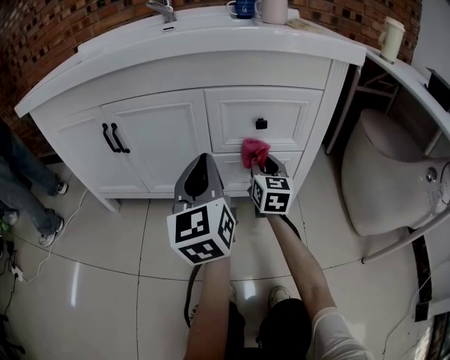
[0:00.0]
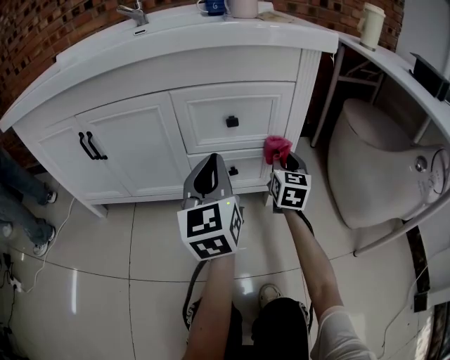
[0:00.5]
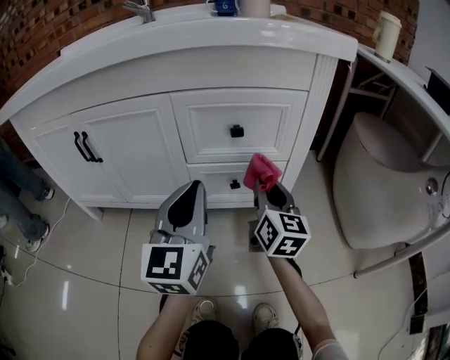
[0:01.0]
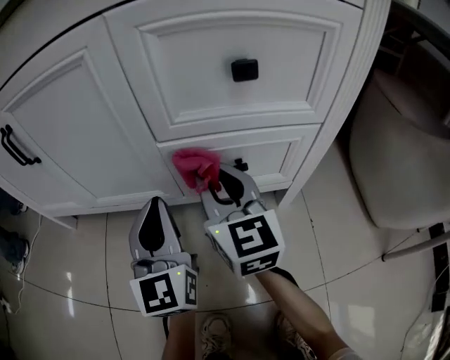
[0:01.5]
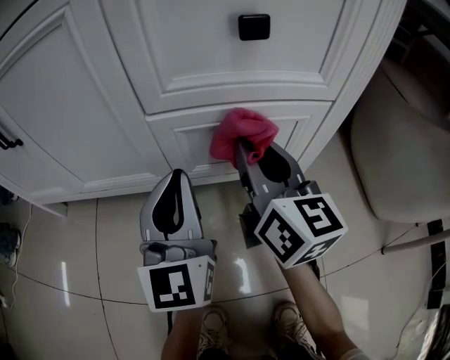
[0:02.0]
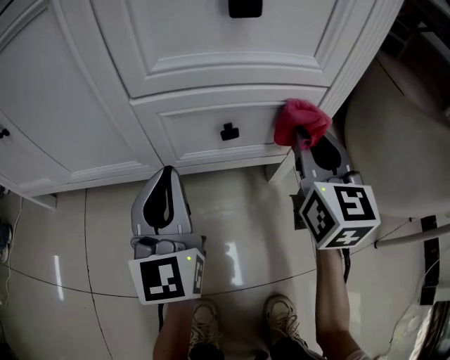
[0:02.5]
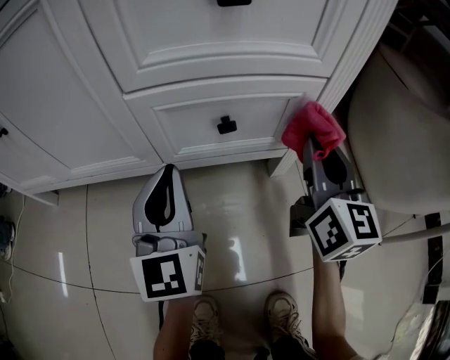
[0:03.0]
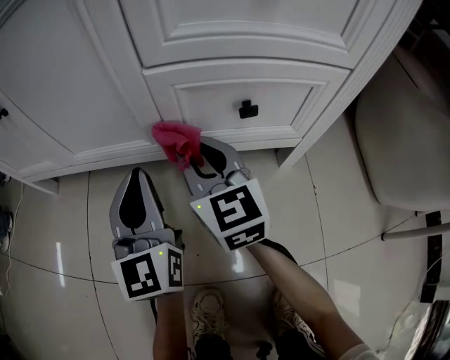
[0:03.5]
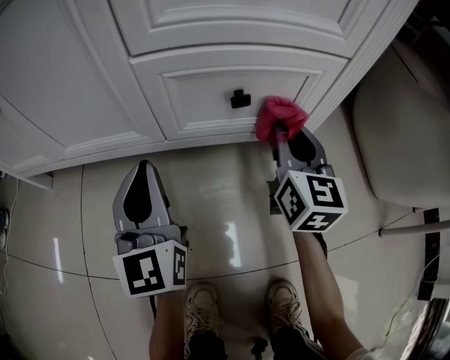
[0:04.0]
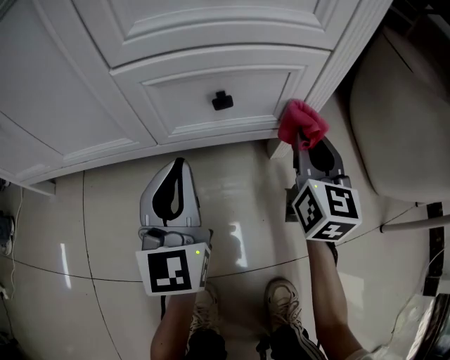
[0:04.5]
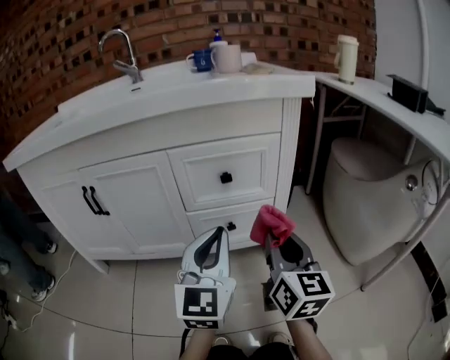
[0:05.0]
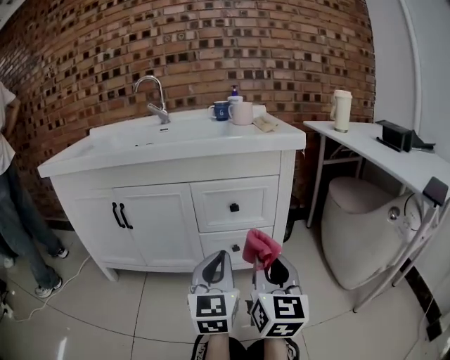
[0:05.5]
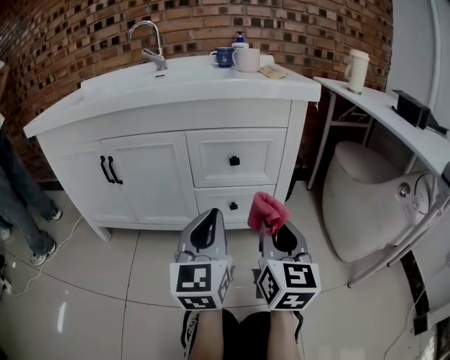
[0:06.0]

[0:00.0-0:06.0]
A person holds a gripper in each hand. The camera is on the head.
0:00.0 to 0:02.0: The right gripper moves left and right over some 20 cm, changing direction 2 times; the left gripper moves downward, some 20 cm.
0:02.0 to 0:04.0: The left gripper moves downward and to the left, some 10 cm; the right gripper swings left and right, about 25 cm each way, with 2 reversals, and changes its angle by approximately 20 degrees.
0:04.0 to 0:06.0: The right gripper is displaced upward and backward by roughly 35 cm, while the left gripper goes some 35 cm upward, backward and to the right.

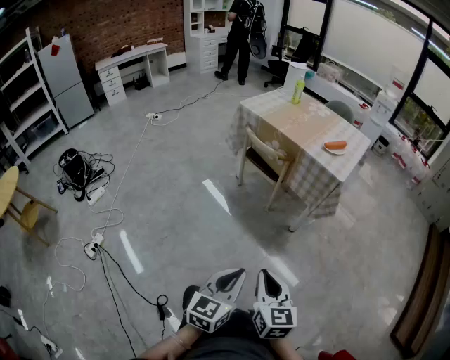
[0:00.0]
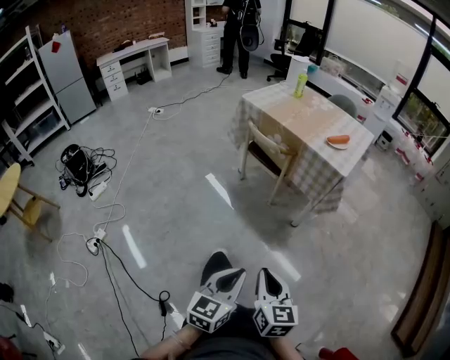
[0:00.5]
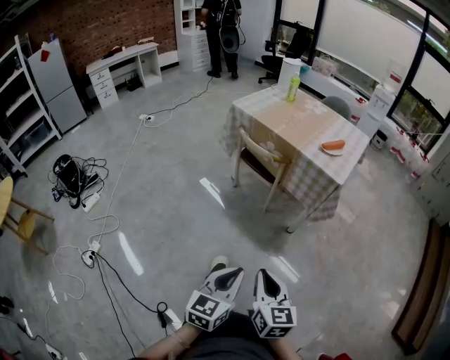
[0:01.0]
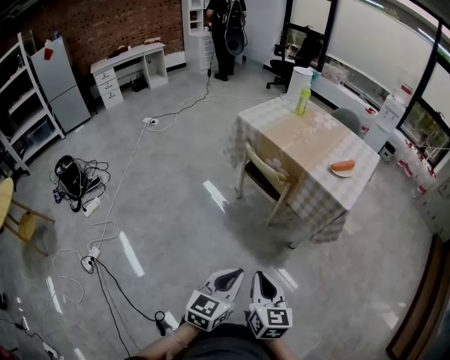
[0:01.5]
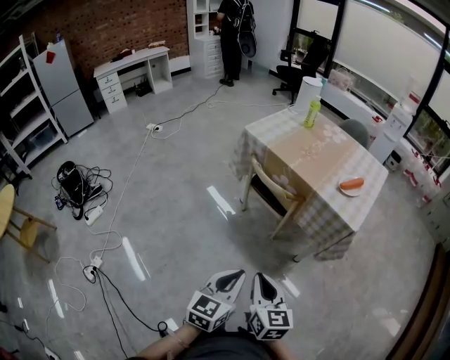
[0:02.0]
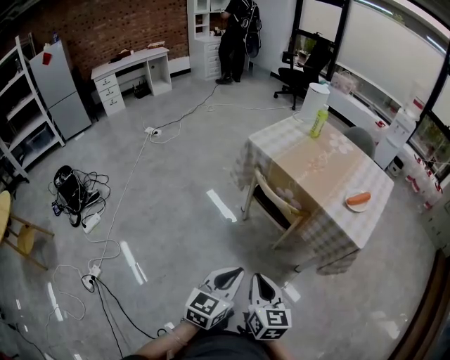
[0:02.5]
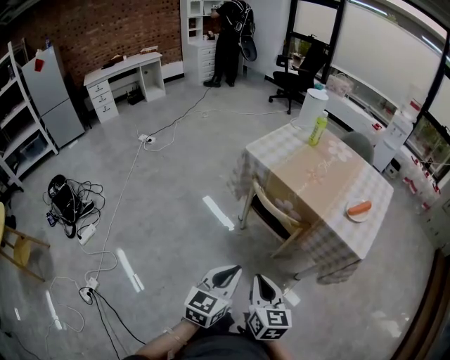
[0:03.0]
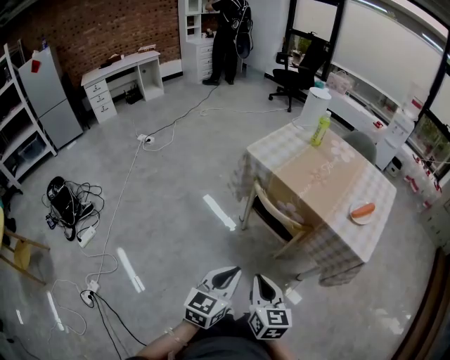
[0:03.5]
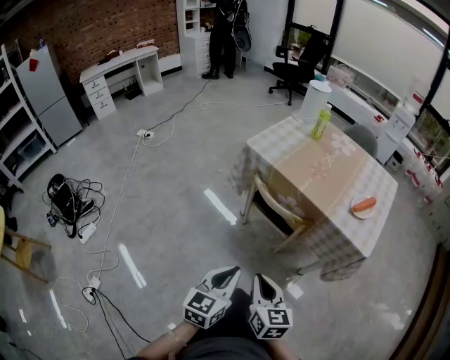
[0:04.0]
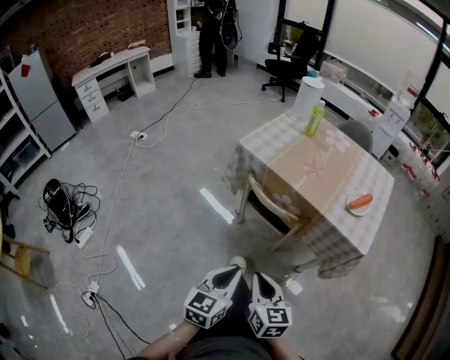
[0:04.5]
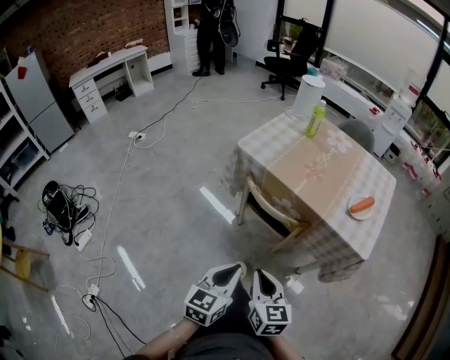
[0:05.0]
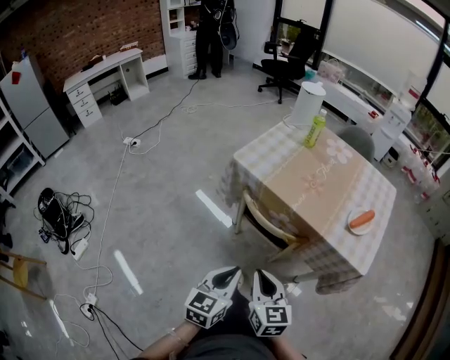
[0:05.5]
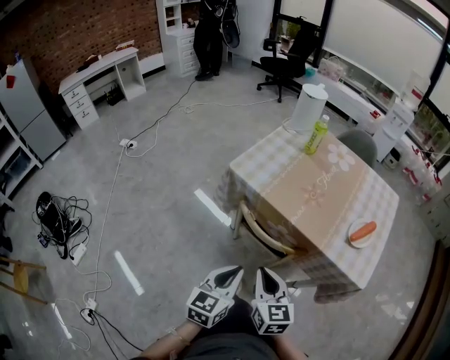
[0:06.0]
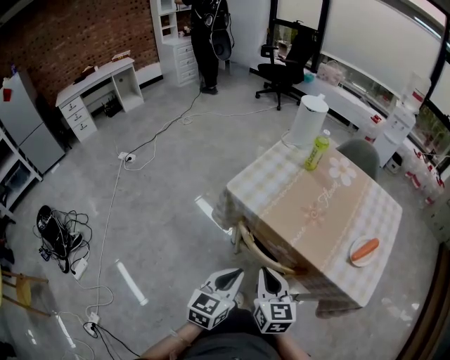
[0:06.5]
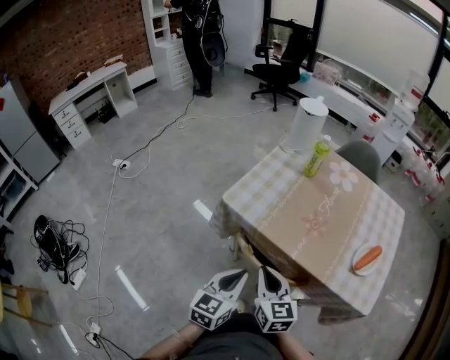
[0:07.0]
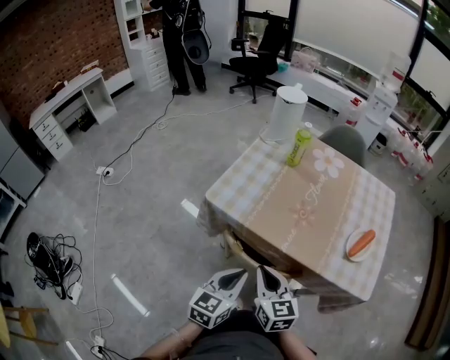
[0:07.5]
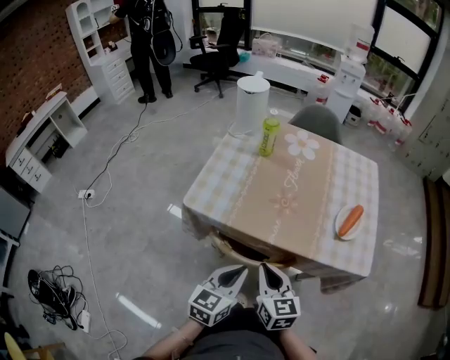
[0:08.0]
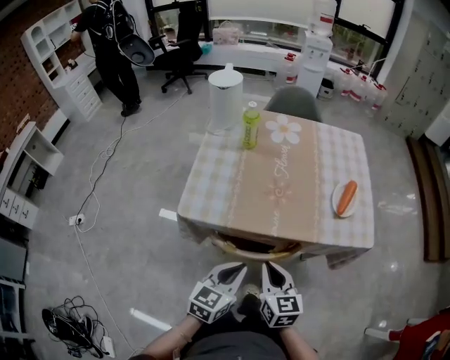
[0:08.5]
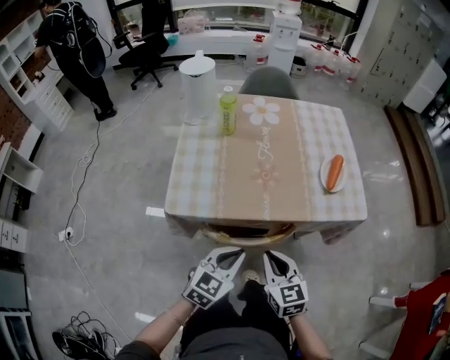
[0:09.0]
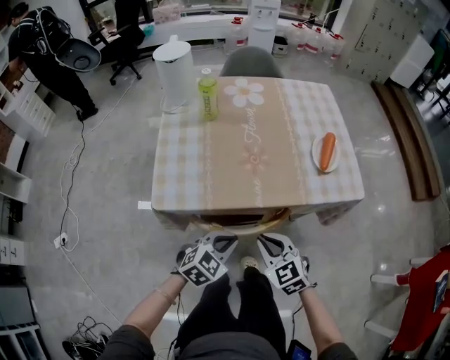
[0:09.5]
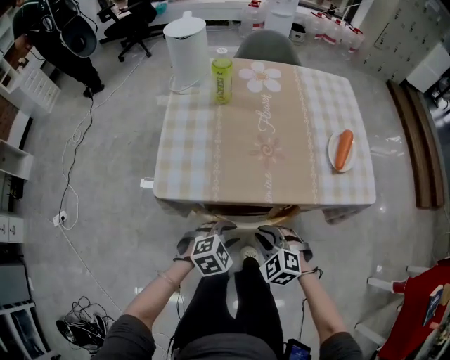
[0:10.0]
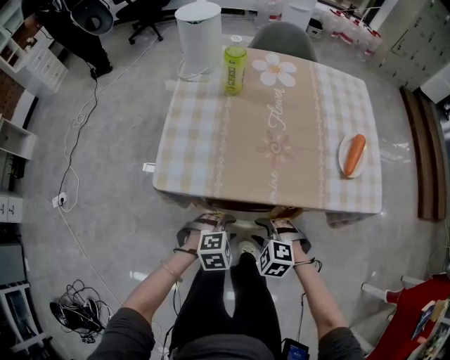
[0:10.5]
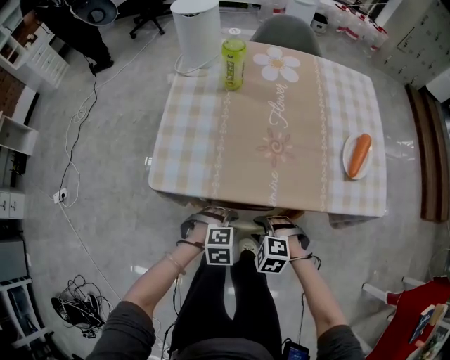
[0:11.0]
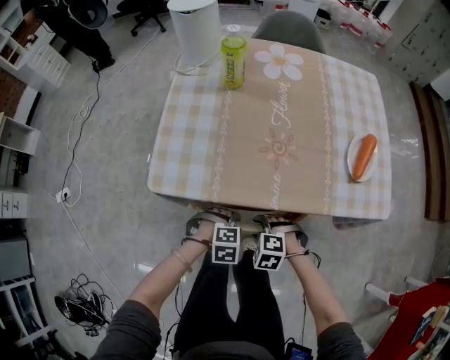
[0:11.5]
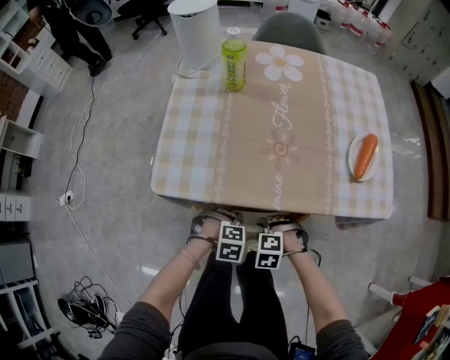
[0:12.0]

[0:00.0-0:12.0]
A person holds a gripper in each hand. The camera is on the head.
0:00.0 to 0:02.0: Both grippers move forward, some 25 cm.
0:02.0 to 0:04.0: Both grippers travel together forward and to the left, roughly 15 cm.
0:04.0 to 0:06.0: The two grippers go some 20 cm forward.
0:06.0 to 0:08.0: The two grippers go roughly 15 cm forward. The left gripper swivels some 20 degrees.
0:08.0 to 0:10.0: The grippers both shift downward by approximately 15 cm. The left gripper tilts its fingers approximately 40 degrees downward, and opens up. The right gripper tips its fingers downward by roughly 30 degrees.
0:10.0 to 0:12.0: Both grippers travel together downward, some 10 cm. The left gripper turns by approximately 30 degrees. Meanwhile the right gripper swivels approximately 40 degrees, and opens its fingers.

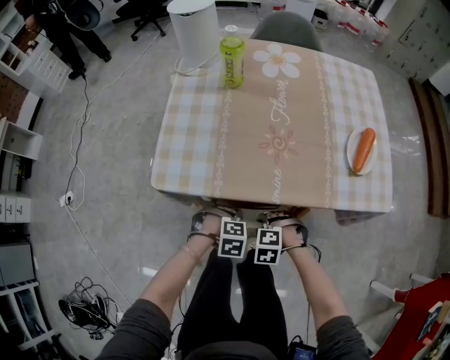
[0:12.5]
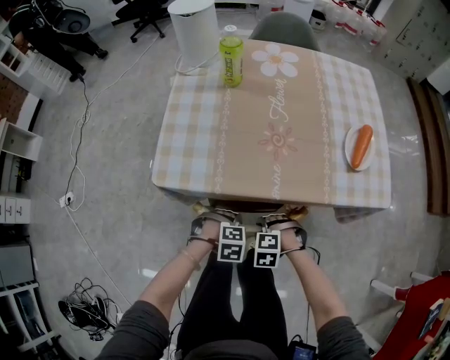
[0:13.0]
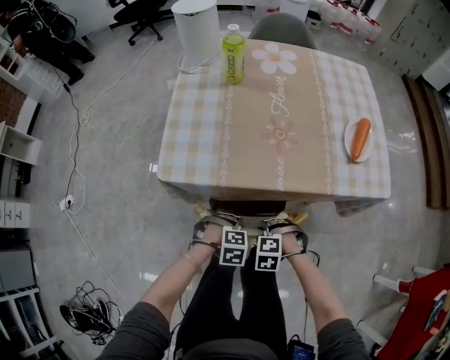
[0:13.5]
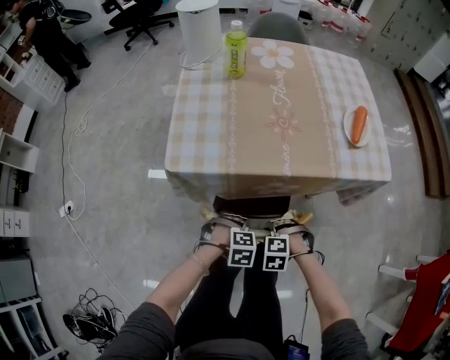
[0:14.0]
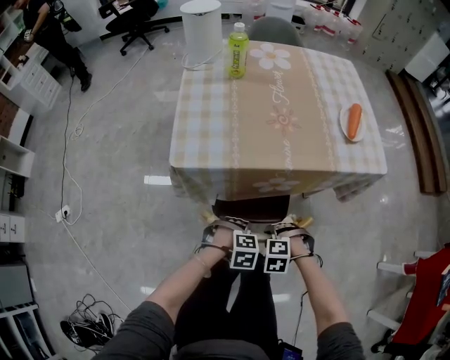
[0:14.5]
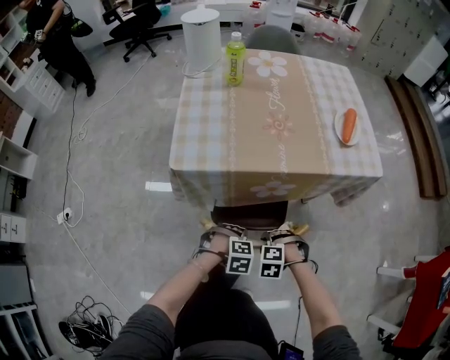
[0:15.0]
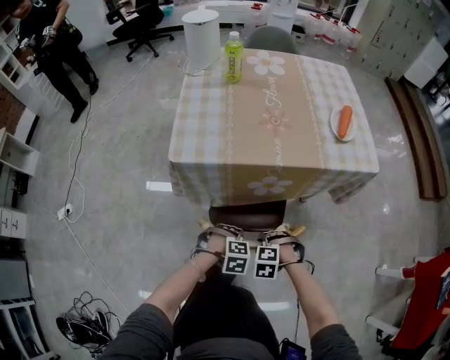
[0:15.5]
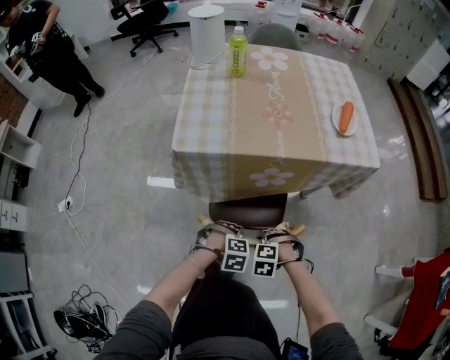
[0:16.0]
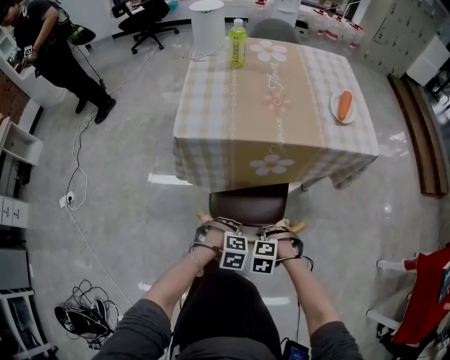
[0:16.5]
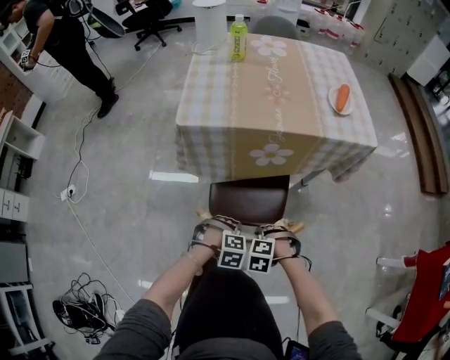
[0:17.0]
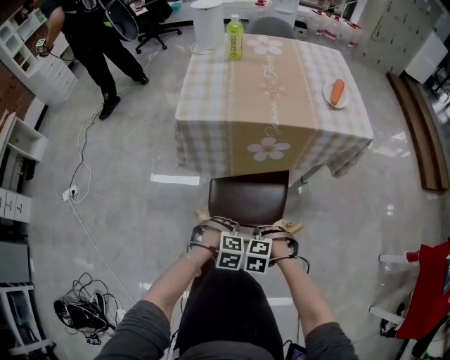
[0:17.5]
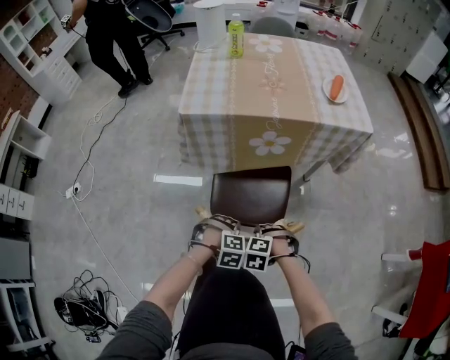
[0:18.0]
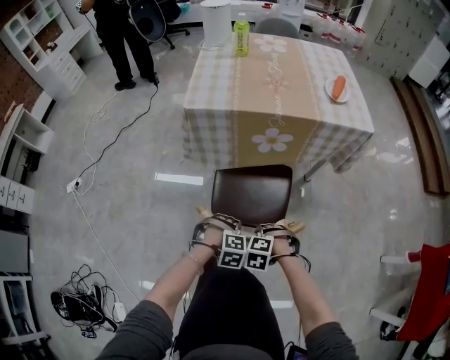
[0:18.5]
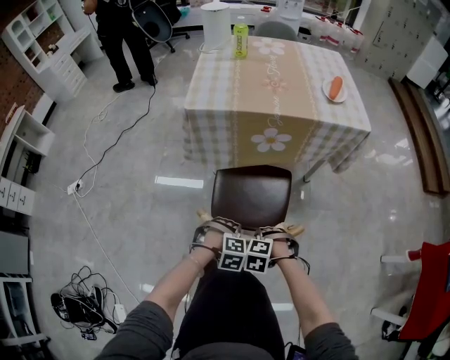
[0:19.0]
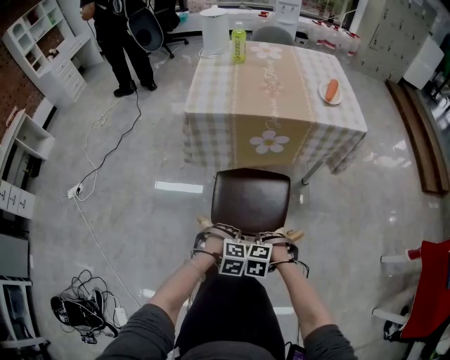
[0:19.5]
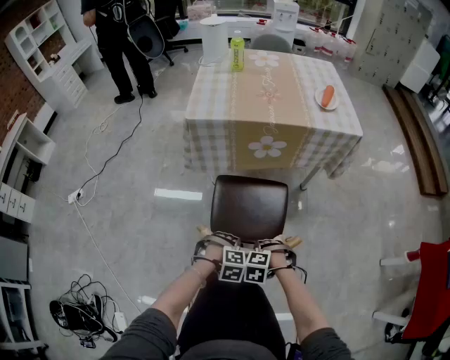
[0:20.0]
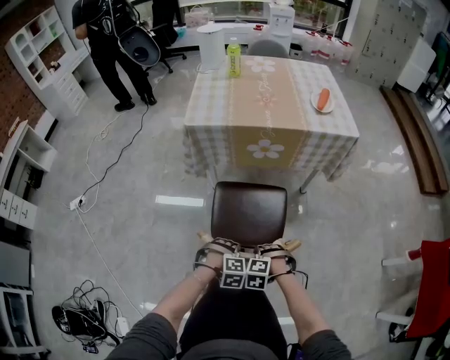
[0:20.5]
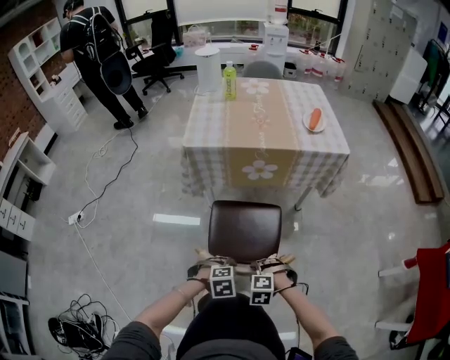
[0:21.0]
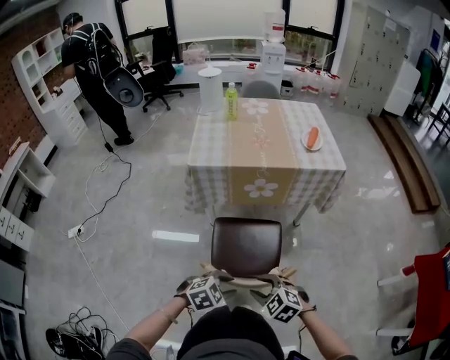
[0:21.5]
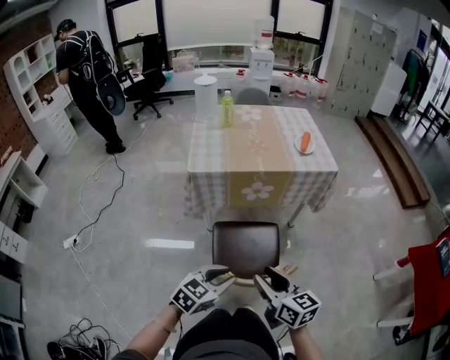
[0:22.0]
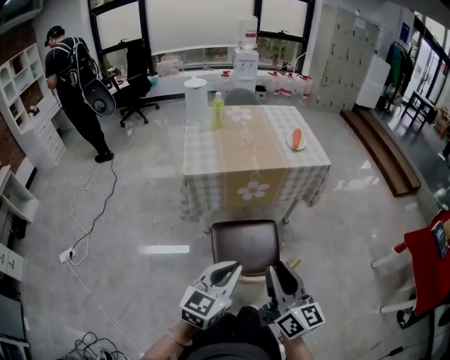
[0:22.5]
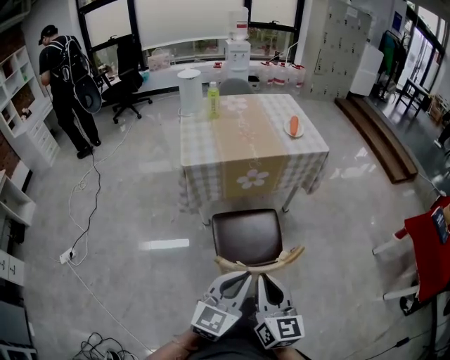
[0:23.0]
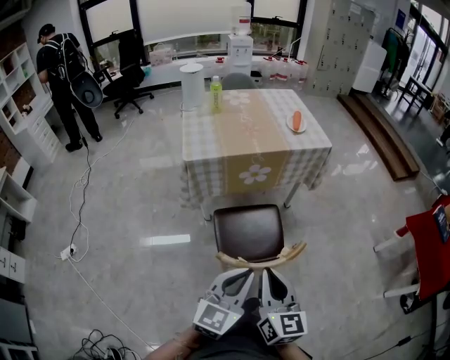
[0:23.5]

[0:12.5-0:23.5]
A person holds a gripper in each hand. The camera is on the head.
0:12.5 to 0:14.5: The right gripper changes place by some 15 cm, while the left gripper ends up about 15 cm from where it was.
0:14.5 to 0:16.0: The left gripper changes place by some 5 cm, while the right gripper changes place by about 5 cm.
0:16.0 to 0:18.0: The right gripper changes place by some 15 cm. Meanwhile the left gripper changes place by approximately 15 cm.
0:18.0 to 0:20.0: The right gripper ends up approximately 10 cm from where it was. Meanwhile the left gripper ends up some 10 cm from where it was.
0:20.0 to 0:21.5: Both grippers move upward, roughly 15 cm. The right gripper tips its fingers upward by about 30 degrees, while the left gripper swivels some 40 degrees, and opens, then closes once more.
0:21.5 to 0:23.5: Both grippers travel together upward, roughly 20 cm. The left gripper angles its fingers upward, by about 50 degrees, and closes its fingers. The right gripper points its fingers approximately 40 degrees further upward, and closes its fingers.
